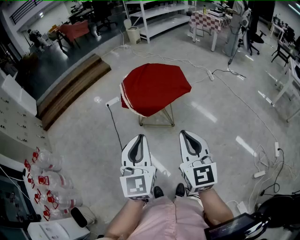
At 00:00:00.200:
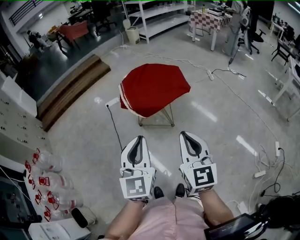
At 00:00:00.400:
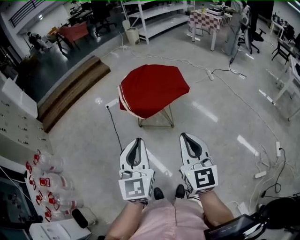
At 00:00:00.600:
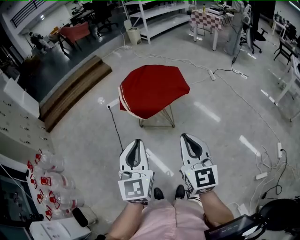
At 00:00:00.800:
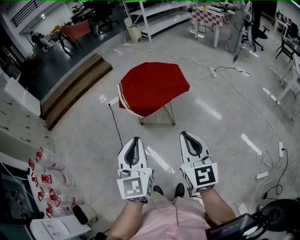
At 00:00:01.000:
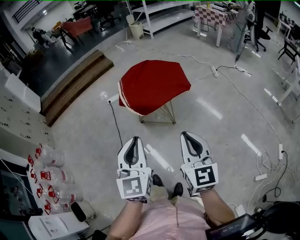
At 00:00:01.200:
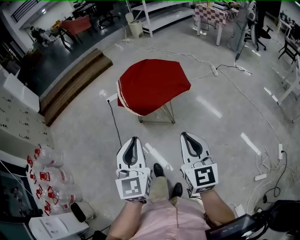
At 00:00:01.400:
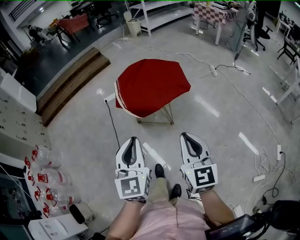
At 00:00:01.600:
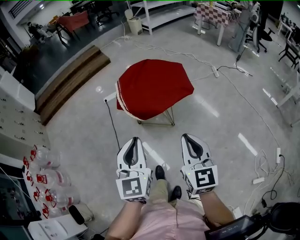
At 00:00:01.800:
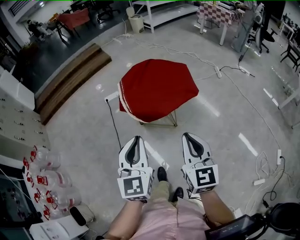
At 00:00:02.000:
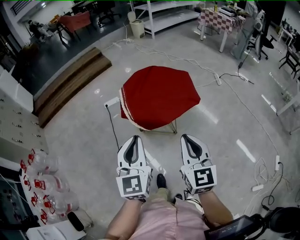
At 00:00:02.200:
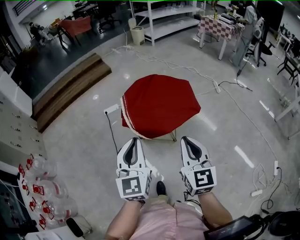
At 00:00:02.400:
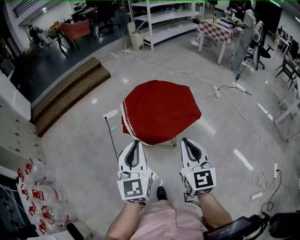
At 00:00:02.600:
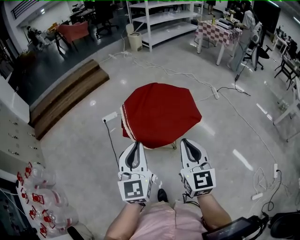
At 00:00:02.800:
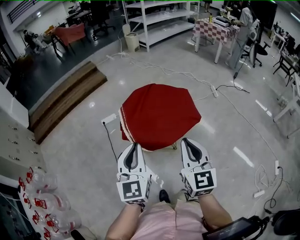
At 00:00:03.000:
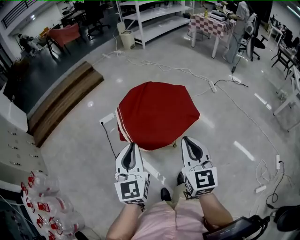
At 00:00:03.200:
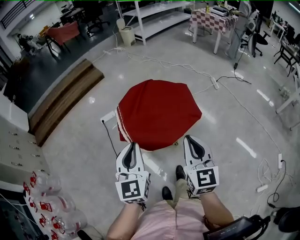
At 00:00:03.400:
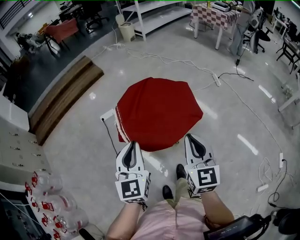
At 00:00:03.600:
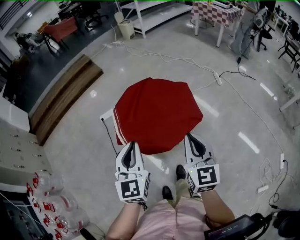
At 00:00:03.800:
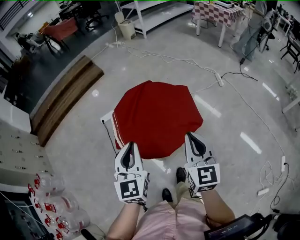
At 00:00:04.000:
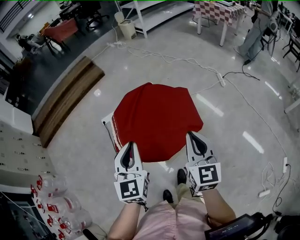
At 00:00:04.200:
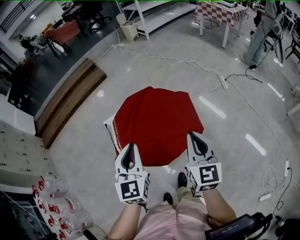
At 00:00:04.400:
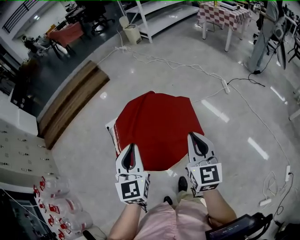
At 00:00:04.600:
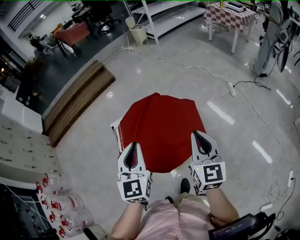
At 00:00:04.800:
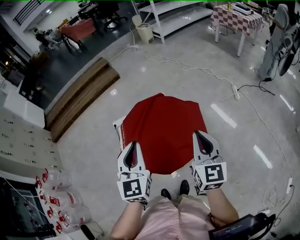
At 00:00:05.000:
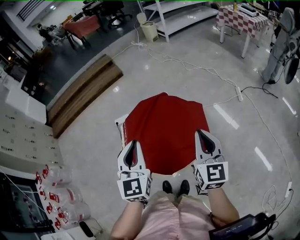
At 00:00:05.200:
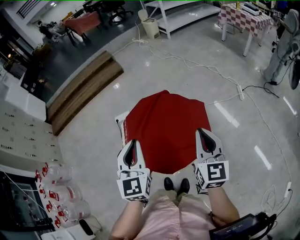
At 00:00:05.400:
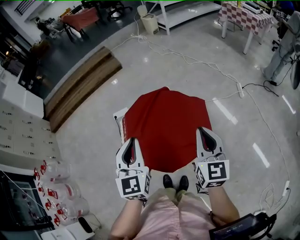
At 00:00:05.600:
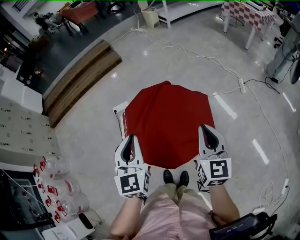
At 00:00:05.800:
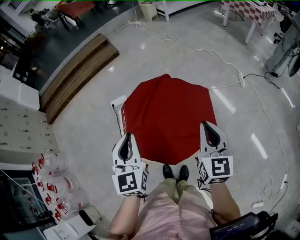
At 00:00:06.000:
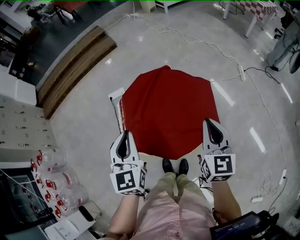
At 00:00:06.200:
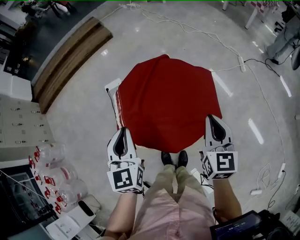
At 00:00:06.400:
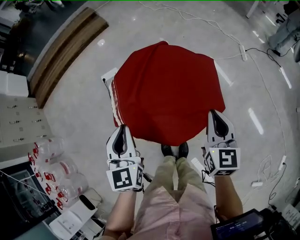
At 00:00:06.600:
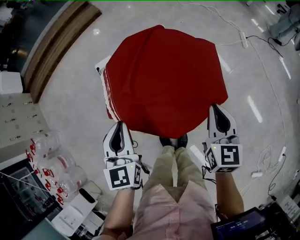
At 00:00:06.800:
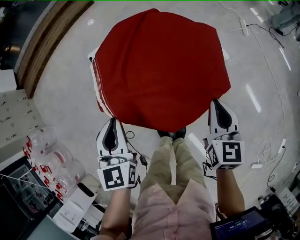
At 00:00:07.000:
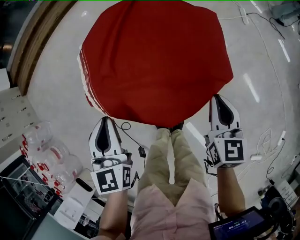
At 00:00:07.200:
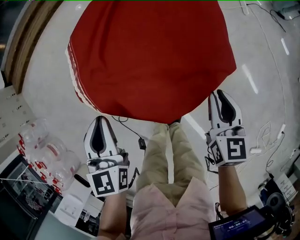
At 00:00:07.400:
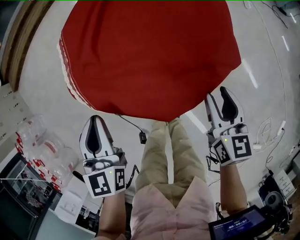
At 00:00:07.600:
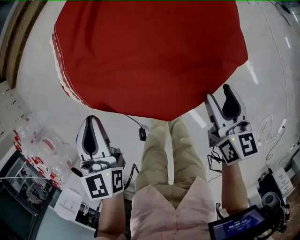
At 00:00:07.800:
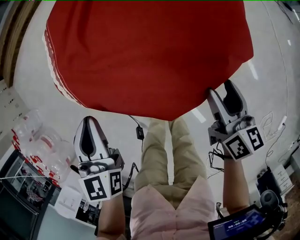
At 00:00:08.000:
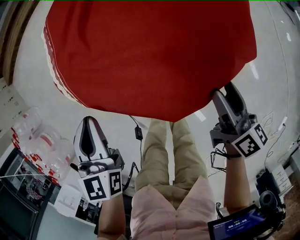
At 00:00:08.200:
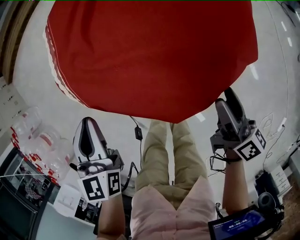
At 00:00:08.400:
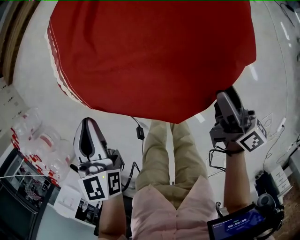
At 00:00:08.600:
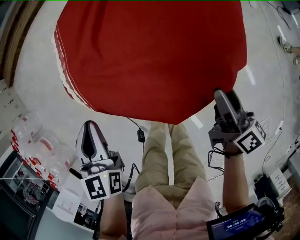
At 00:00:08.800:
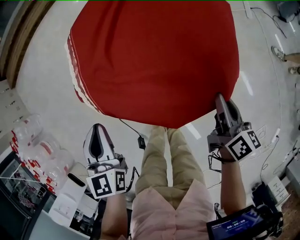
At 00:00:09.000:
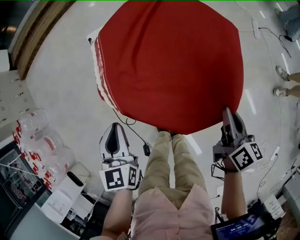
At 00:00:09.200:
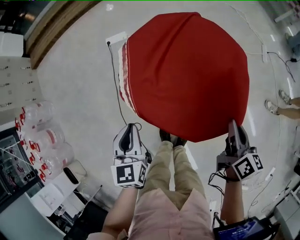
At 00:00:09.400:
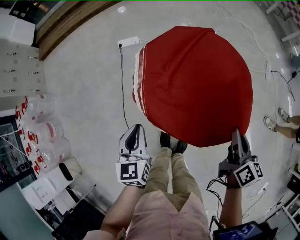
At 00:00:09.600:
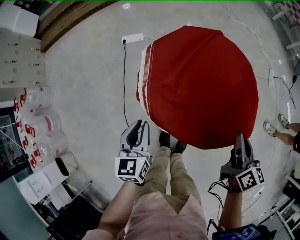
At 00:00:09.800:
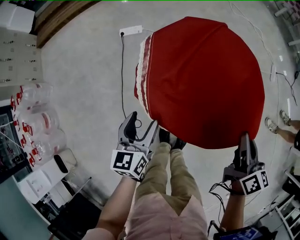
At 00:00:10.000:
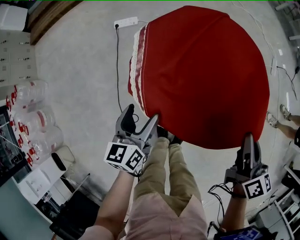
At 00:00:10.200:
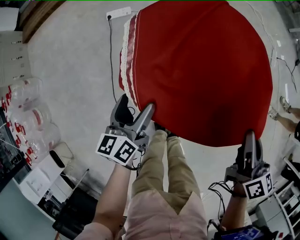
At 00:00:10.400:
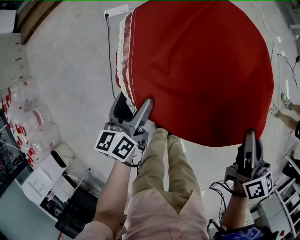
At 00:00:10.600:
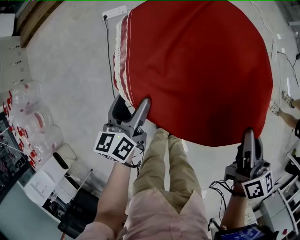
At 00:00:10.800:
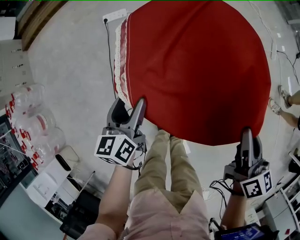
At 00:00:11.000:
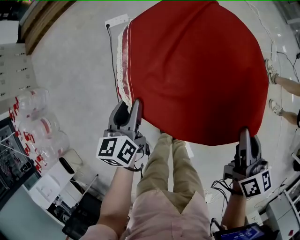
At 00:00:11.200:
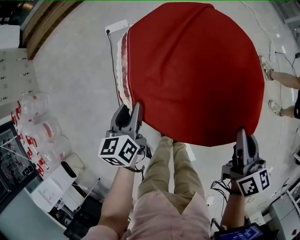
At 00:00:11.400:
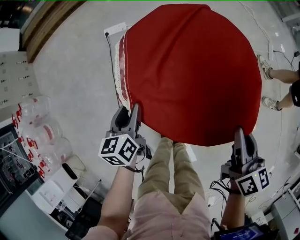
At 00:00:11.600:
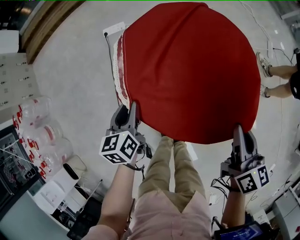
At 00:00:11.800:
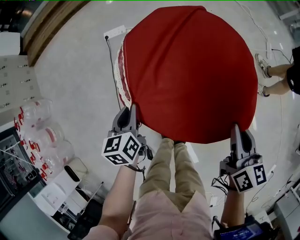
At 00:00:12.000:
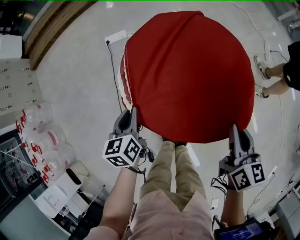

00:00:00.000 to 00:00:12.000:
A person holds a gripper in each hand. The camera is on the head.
00:00:00.000 to 00:00:01.600: The right gripper heads forward and downward, covering about 10 cm. Meanwhile the left gripper travels forward by approximately 10 cm.
00:00:01.600 to 00:00:03.000: The grippers both shift forward by approximately 20 cm.
00:00:03.000 to 00:00:04.400: The two grippers go approximately 20 cm forward and to the right.
00:00:04.400 to 00:00:06.000: The left gripper shifts about 10 cm to the left, forward and downward, while the right gripper is displaced forward and downward by roughly 10 cm.
00:00:06.000 to 00:00:07.600: The two grippers go about 25 cm downward. The right gripper changes its angle by roughly 30 degrees, and opens its fingers.
00:00:07.600 to 00:00:09.000: The right gripper goes about 5 cm upward, and closes up.
00:00:09.000 to 00:00:10.400: The left gripper goes about 10 cm downward and forward, changes its angle by approximately 30 degrees, and opens up. The right gripper changes place by some 5 cm.
00:00:10.400 to 00:00:12.000: The left gripper closes.

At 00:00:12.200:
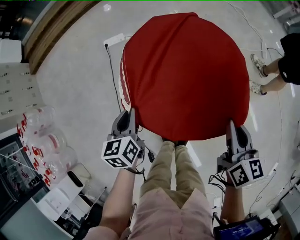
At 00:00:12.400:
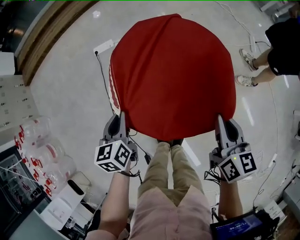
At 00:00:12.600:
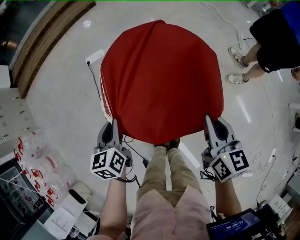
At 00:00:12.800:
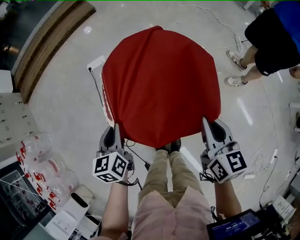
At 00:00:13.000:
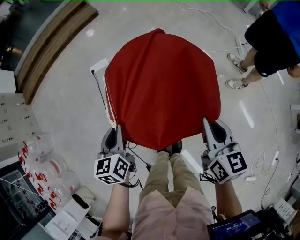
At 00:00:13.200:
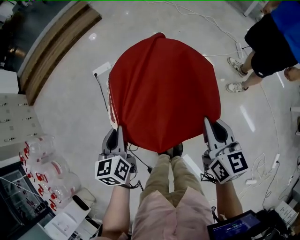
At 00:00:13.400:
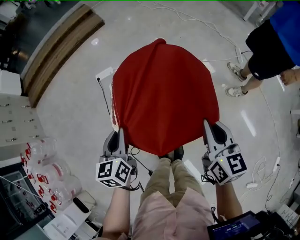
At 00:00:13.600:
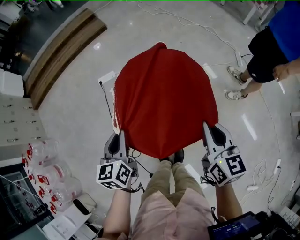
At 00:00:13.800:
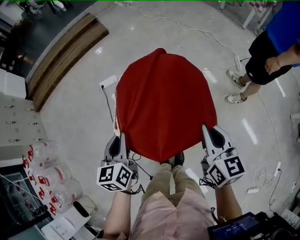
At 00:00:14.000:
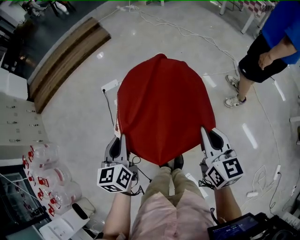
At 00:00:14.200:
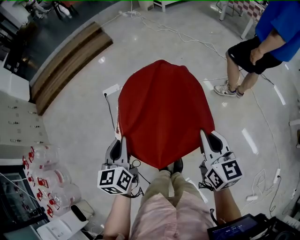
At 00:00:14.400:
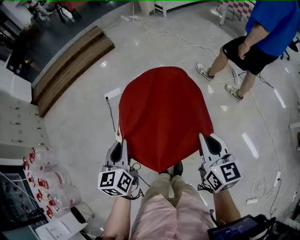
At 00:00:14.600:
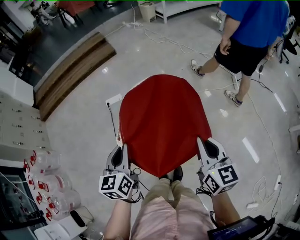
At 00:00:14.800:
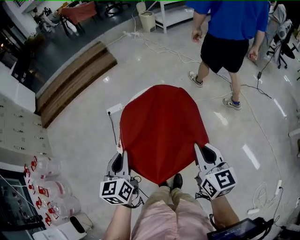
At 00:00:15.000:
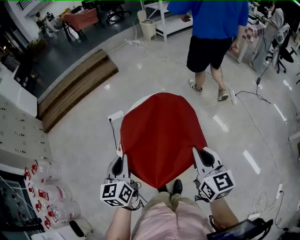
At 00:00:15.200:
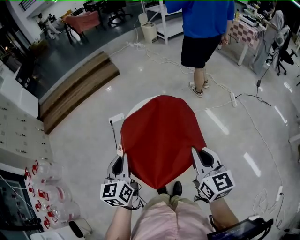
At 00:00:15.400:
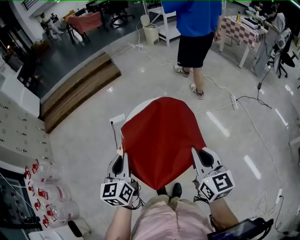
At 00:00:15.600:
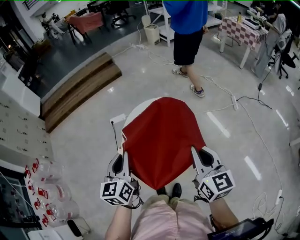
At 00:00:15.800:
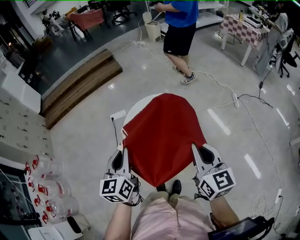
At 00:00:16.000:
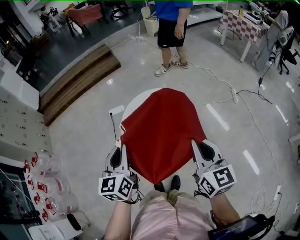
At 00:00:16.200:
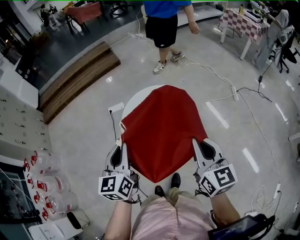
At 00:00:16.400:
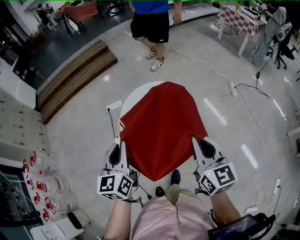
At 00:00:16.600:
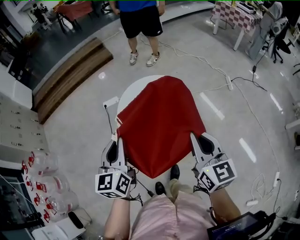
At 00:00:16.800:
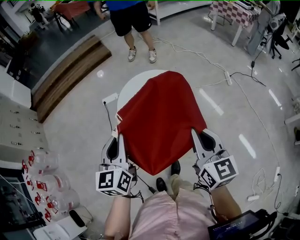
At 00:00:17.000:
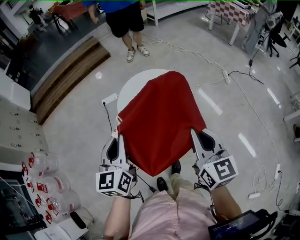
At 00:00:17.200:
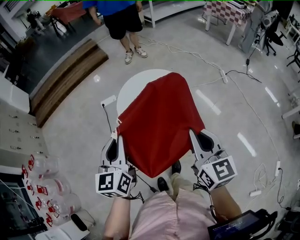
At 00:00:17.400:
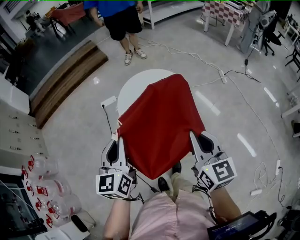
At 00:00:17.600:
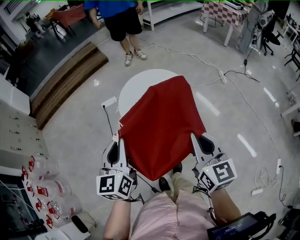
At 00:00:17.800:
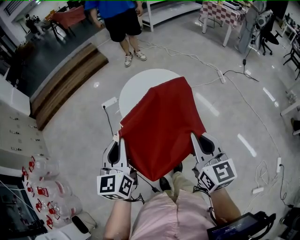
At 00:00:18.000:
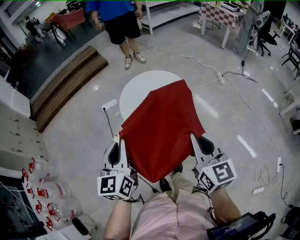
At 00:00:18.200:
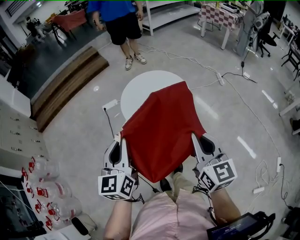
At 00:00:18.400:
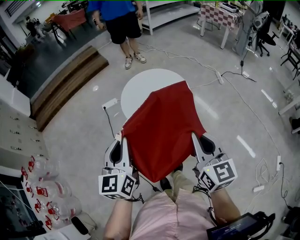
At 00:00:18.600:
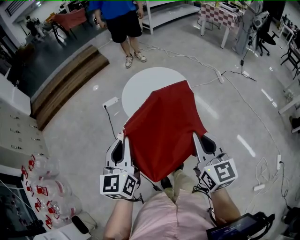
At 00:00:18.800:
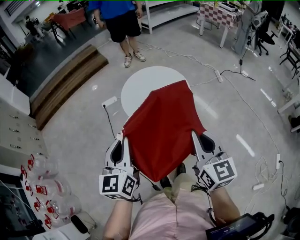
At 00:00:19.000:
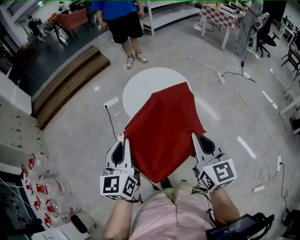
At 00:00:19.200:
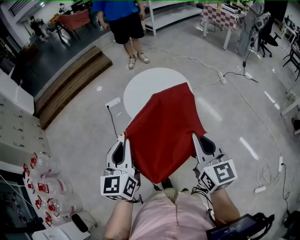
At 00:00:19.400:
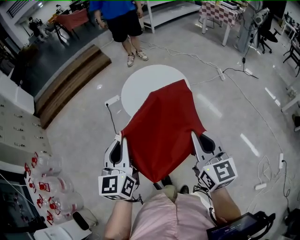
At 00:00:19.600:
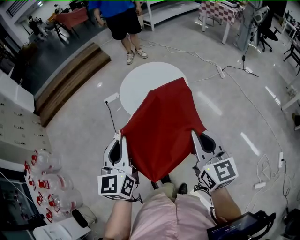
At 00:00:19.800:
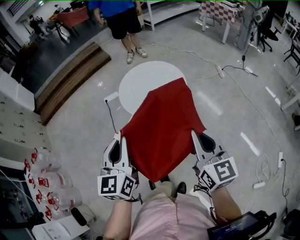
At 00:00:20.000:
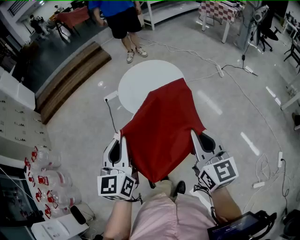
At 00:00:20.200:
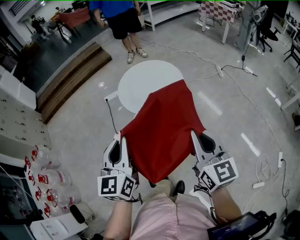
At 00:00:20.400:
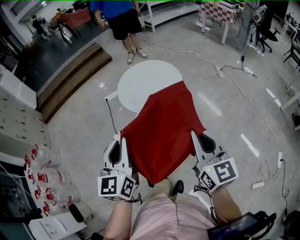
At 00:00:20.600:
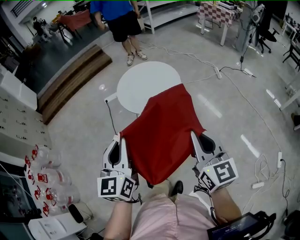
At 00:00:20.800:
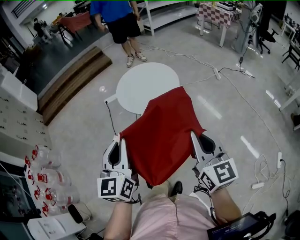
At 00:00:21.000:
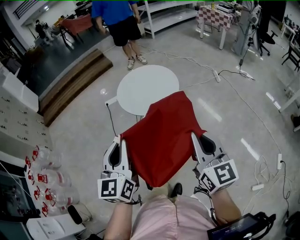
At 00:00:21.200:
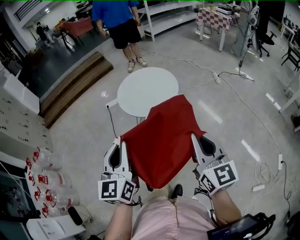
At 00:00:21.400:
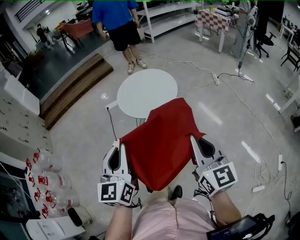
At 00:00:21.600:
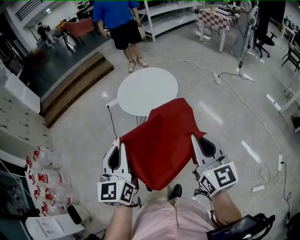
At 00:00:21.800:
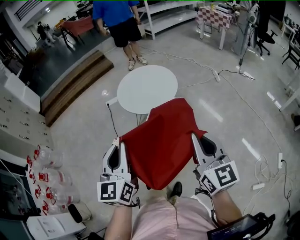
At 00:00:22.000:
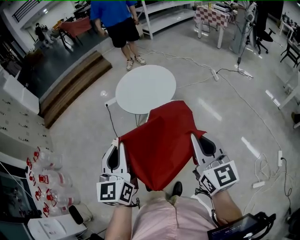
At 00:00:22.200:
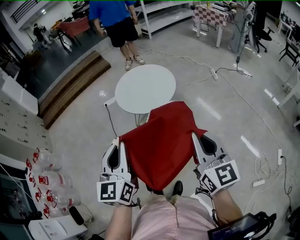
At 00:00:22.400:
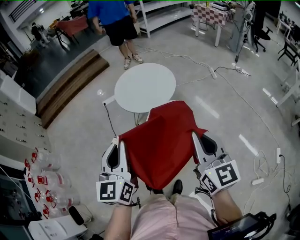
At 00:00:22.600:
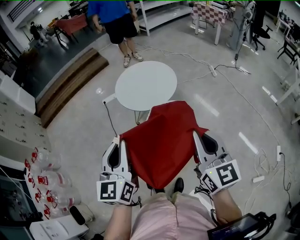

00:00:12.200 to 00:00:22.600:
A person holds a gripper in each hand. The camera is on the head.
00:00:12.200 to 00:00:13.600: Both grippers travel together upward, roughly 15 cm.
00:00:13.600 to 00:00:15.200: The two grippers go about 10 cm upward.
00:00:15.200 to 00:00:16.600: The grippers stay close to where they were, moving slightly.
00:00:16.600 to 00:00:18.200: Both grippers move backward, approximately 15 cm.
00:00:18.200 to 00:00:19.600: The two grippers go roughly 5 cm backward.
00:00:19.600 to 00:00:21.200: Both grippers move backward, some 15 cm.
00:00:21.200 to 00:00:22.600: There are only small adjustments of the grippers.

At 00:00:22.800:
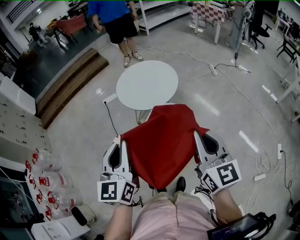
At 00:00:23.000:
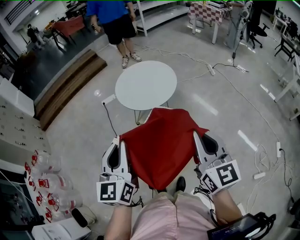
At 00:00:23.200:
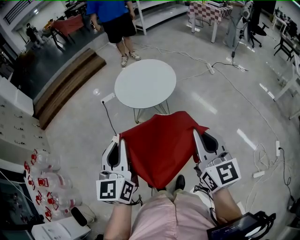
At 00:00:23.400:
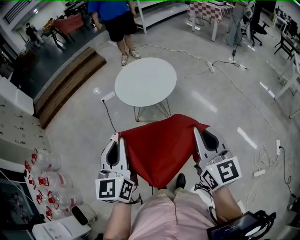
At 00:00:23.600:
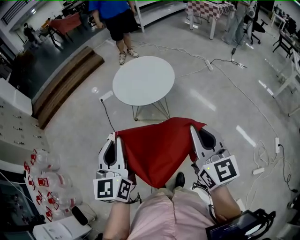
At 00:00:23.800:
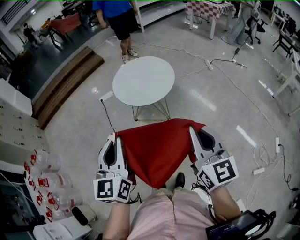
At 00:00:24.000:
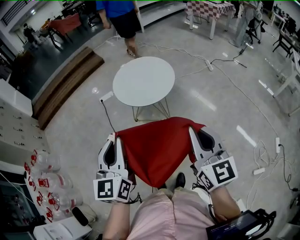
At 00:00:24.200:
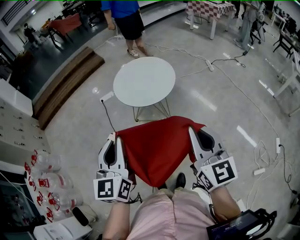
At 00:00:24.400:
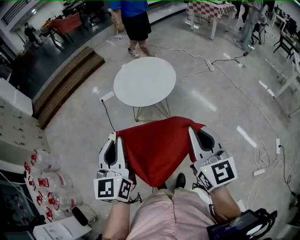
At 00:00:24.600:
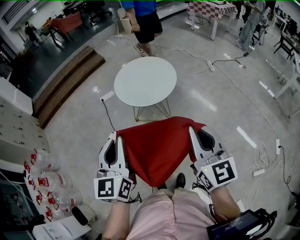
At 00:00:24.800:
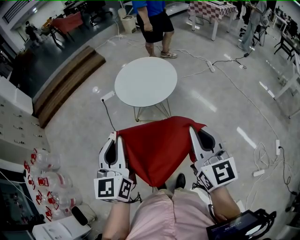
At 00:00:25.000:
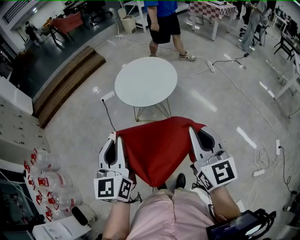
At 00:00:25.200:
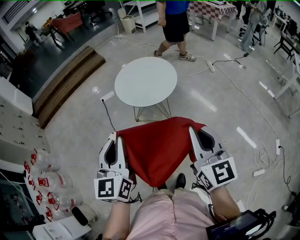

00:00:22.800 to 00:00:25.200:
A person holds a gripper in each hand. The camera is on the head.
00:00:22.800 to 00:00:25.200: The grippers make only small movements.
